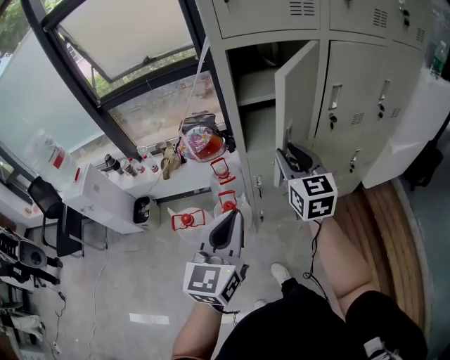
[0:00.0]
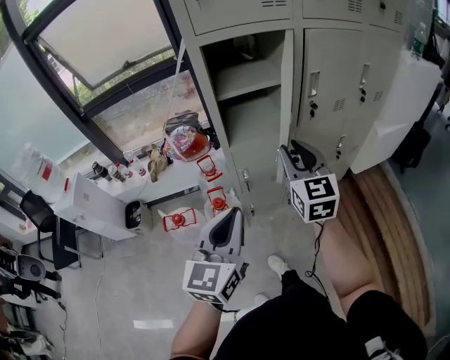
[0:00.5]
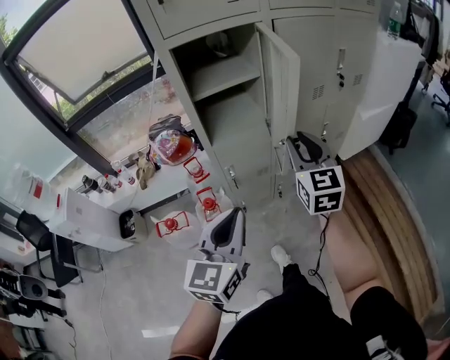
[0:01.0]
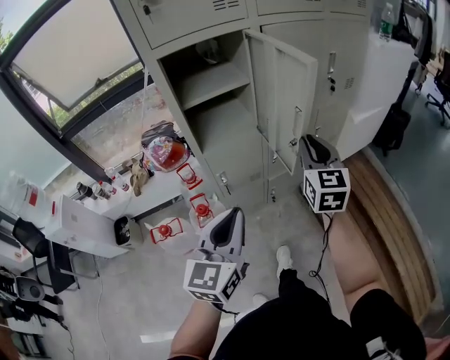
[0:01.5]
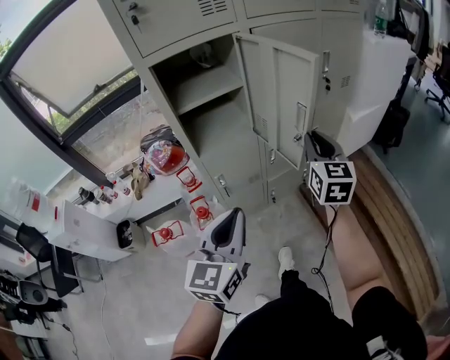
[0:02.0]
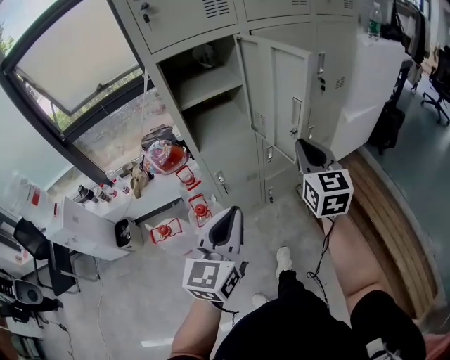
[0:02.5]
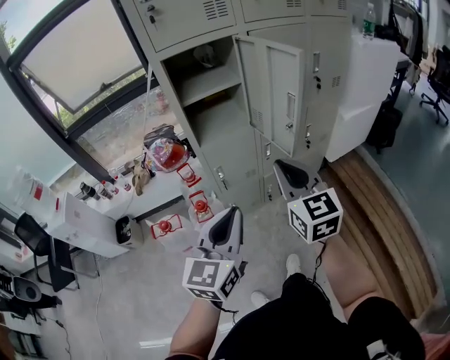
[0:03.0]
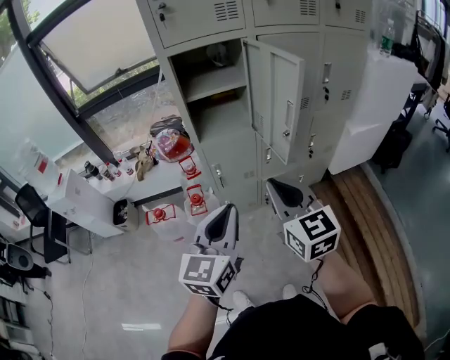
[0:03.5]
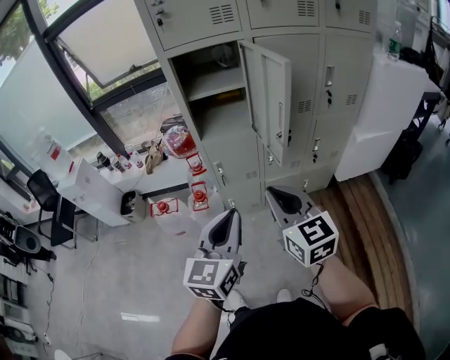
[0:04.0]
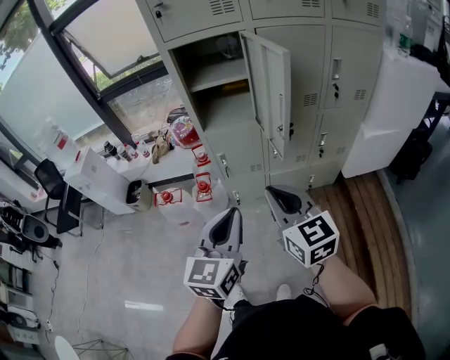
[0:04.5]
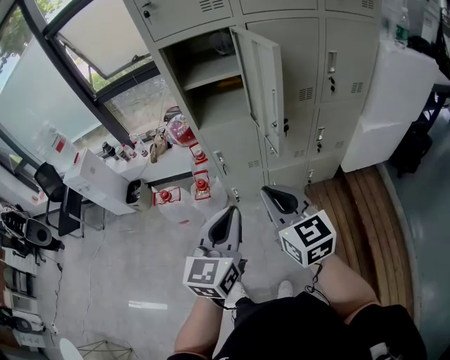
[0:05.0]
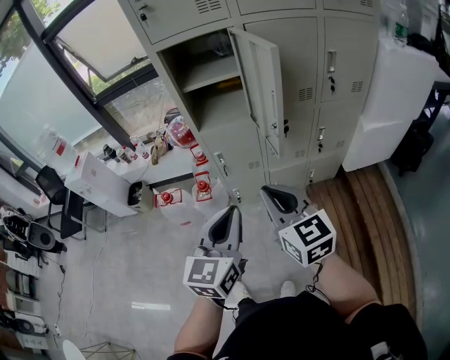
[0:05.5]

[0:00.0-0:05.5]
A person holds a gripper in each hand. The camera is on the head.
0:00.0 to 0:02.0: The right gripper is displaced to the right by about 25 cm, and rotates approximately 30 degrees, while the left gripper heads to the right, covering roughly 10 cm.
0:02.0 to 0:03.5: The left gripper moves backward, roughly 5 cm. The right gripper goes some 20 cm backward and to the left, and turns by roughly 30 degrees.
0:03.5 to 0:05.5: The grippers both shift to the right by roughly 5 cm.

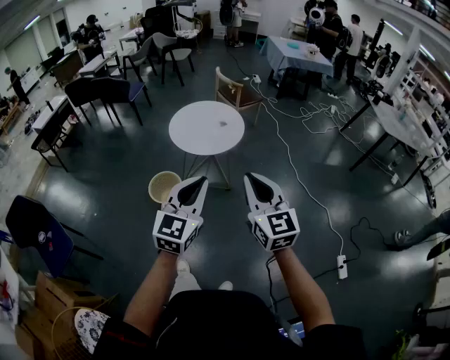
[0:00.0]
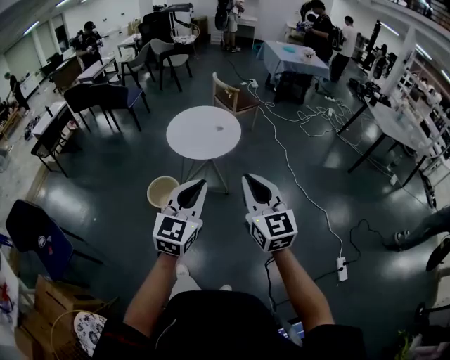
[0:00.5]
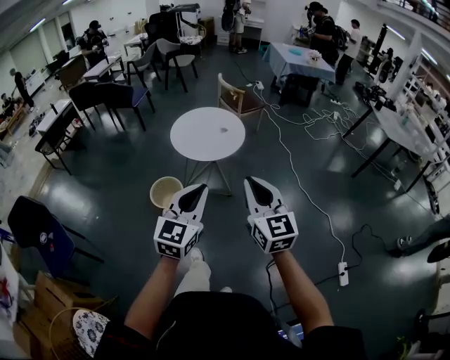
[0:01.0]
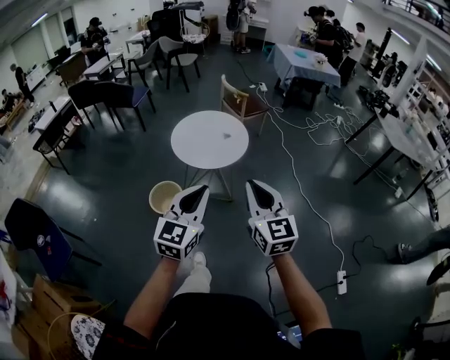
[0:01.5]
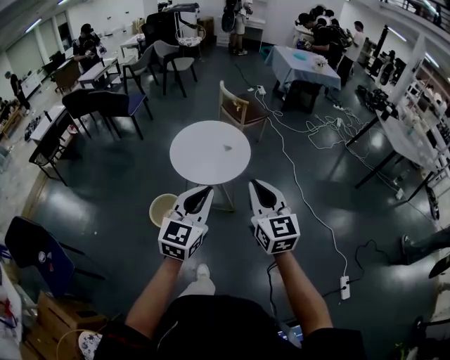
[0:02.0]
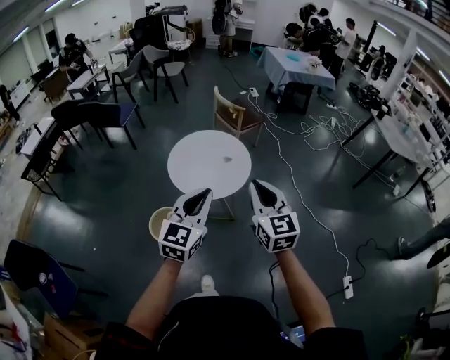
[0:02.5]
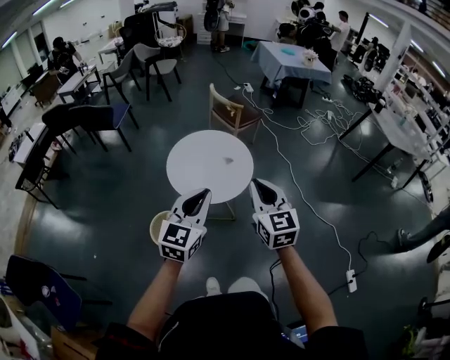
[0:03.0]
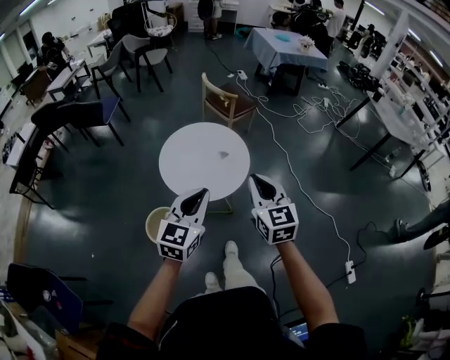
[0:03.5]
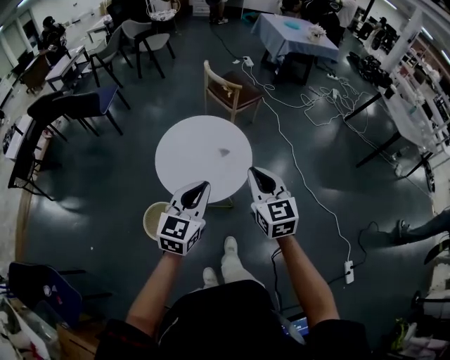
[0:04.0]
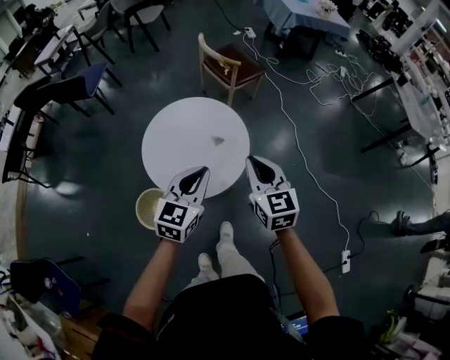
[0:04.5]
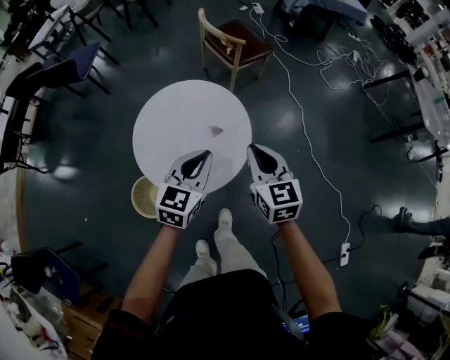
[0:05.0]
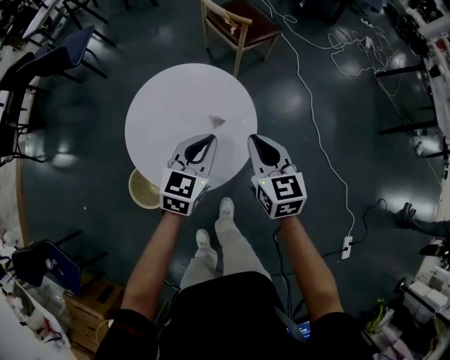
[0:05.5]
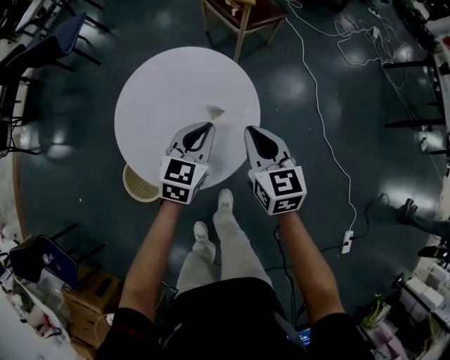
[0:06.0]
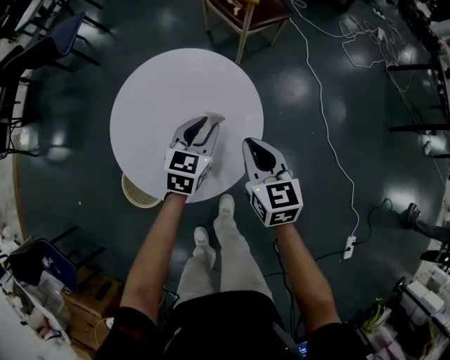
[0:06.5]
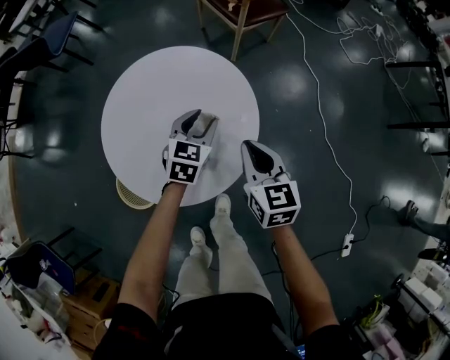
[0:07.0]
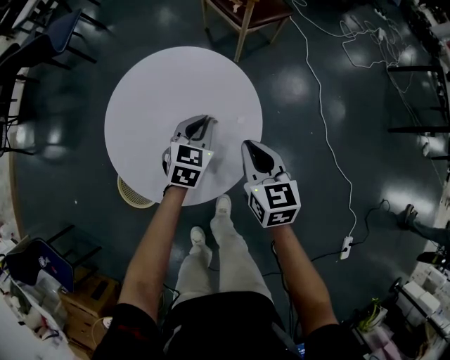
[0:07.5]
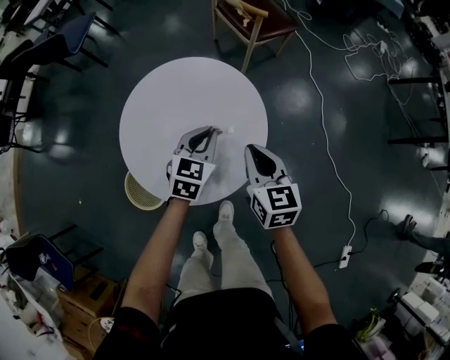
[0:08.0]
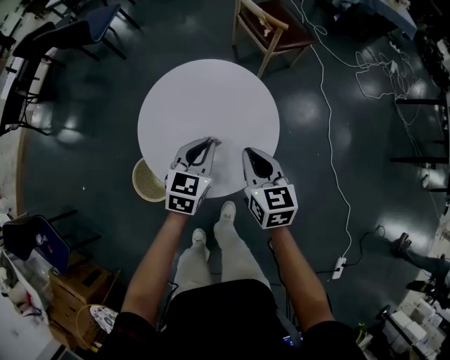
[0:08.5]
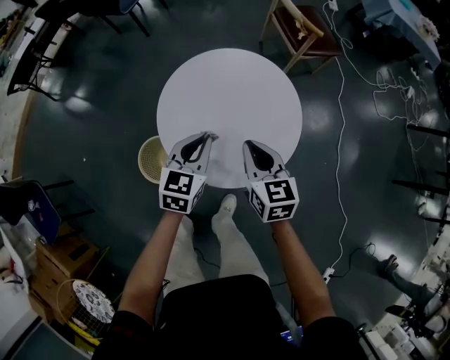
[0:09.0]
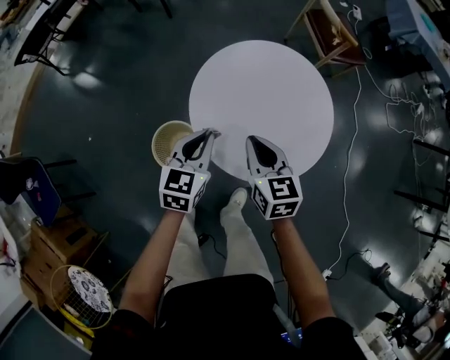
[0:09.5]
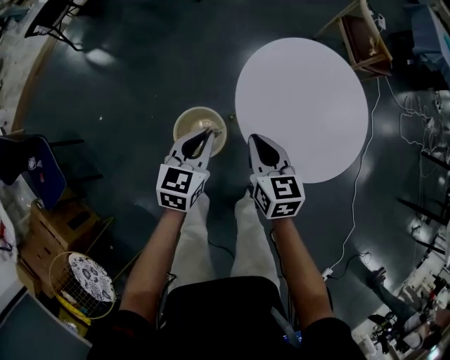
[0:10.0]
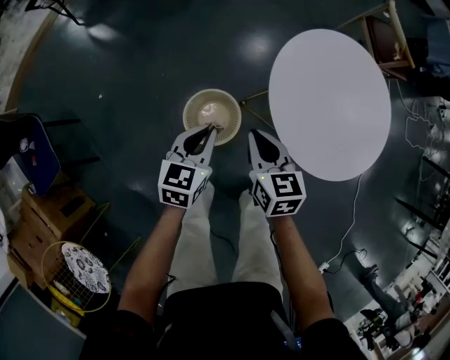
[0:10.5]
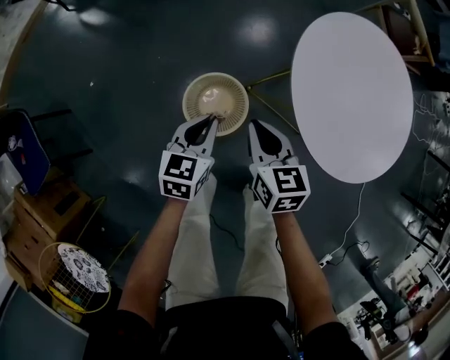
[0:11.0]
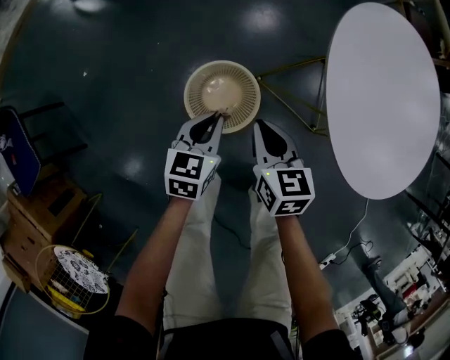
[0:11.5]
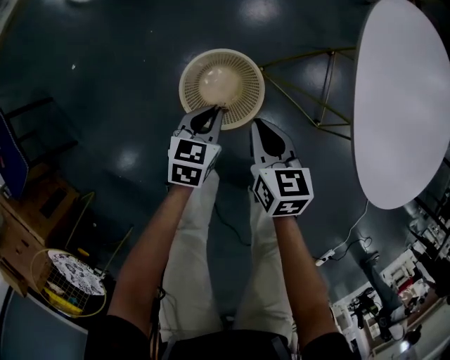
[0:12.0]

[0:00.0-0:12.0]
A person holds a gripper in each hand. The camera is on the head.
0:00.0 to 0:02.0: The grippers both shift forward by roughly 20 cm.
0:02.0 to 0:04.0: Both grippers move forward, about 30 cm.
0:04.0 to 0:06.0: The left gripper is displaced forward and downward by approximately 40 cm; the right gripper travels downward and forward by roughly 35 cm.
0:06.0 to 0:08.0: The left gripper is displaced downward by approximately 5 cm, and opens, then closes again.
0:08.0 to 0:10.0: Both grippers are carried to the left, some 40 cm. The right gripper changes its angle by about 20 degrees, while the left gripper changes its angle by about 30 degrees.
0:10.0 to 0:12.0: The right gripper travels downward and to the left by approximately 40 cm, while the left gripper moves downward, approximately 40 cm.

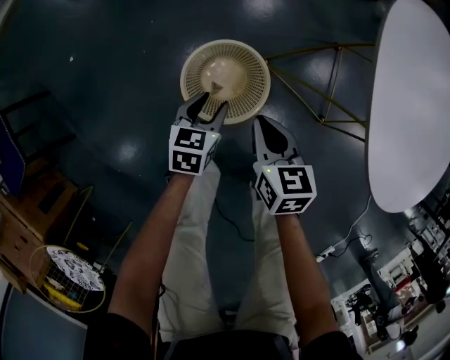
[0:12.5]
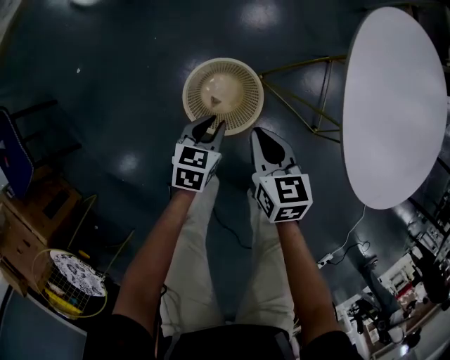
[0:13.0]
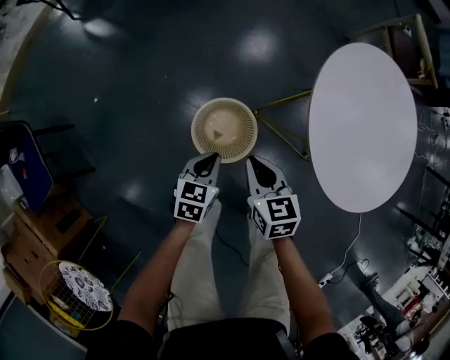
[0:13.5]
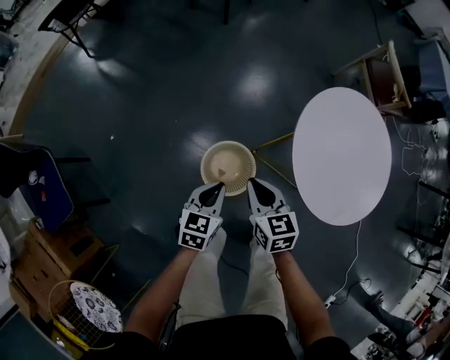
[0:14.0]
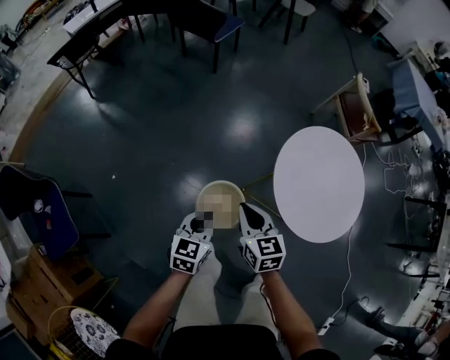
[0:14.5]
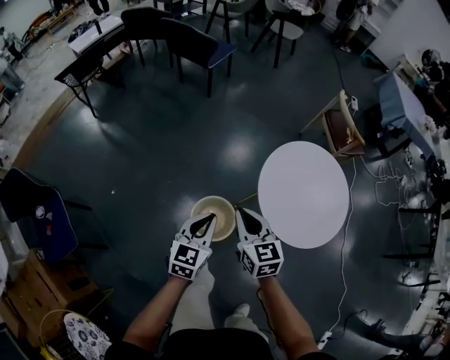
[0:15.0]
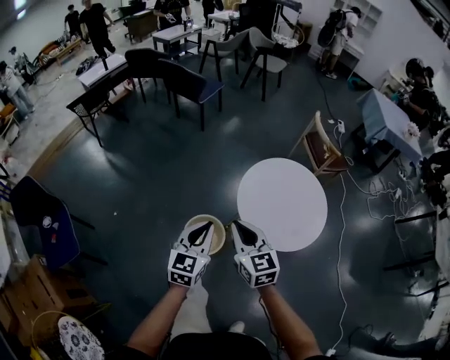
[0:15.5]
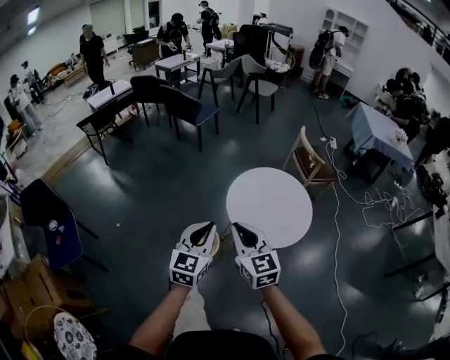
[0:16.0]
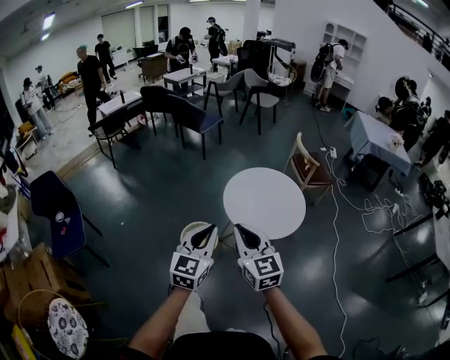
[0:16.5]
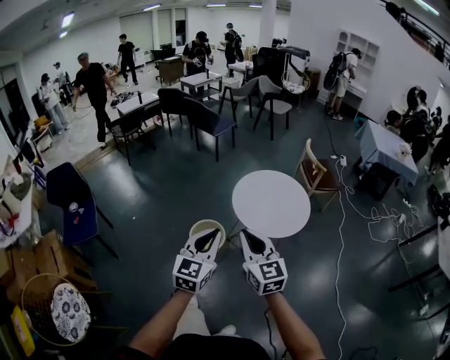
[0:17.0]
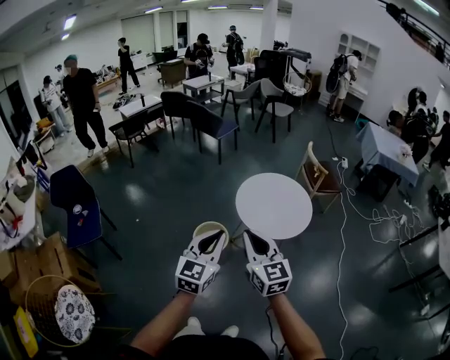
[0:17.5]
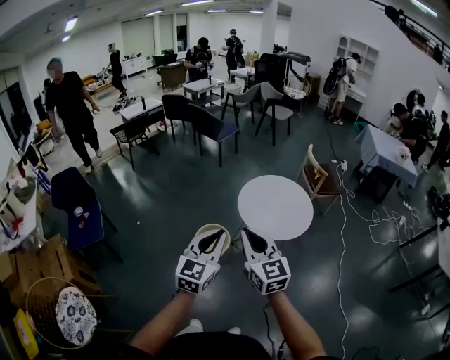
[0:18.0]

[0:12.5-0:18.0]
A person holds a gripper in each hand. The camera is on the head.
0:12.5 to 0:14.5: The grippers both shift upward by about 40 cm. The left gripper closes.
0:14.5 to 0:16.0: Both grippers travel together upward, backward and to the right, roughly 40 cm. The right gripper changes its angle by about 30 degrees, while the left gripper rotates approximately 30 degrees.
0:16.0 to 0:18.0: The two grippers go some 25 cm backward and upward.

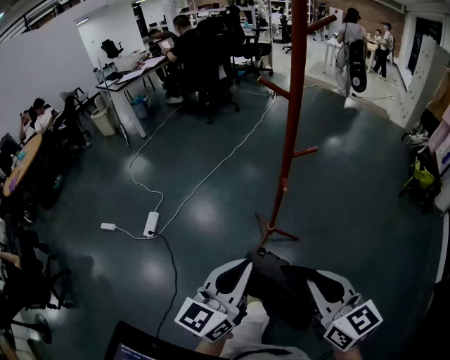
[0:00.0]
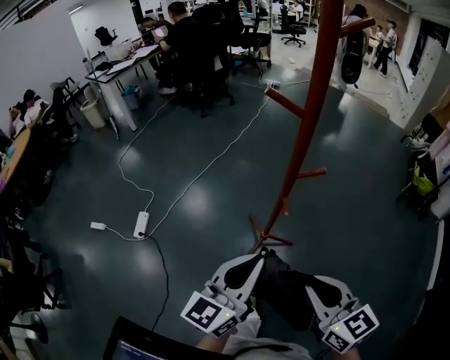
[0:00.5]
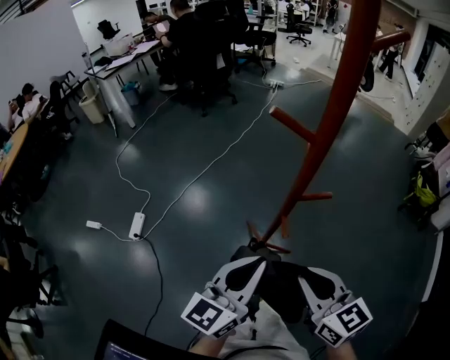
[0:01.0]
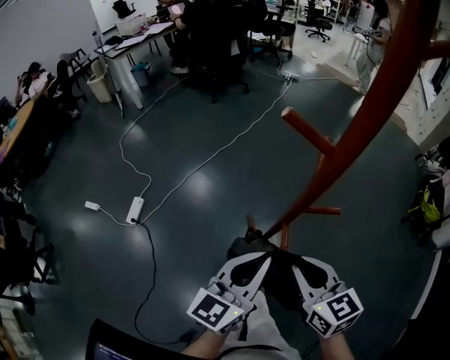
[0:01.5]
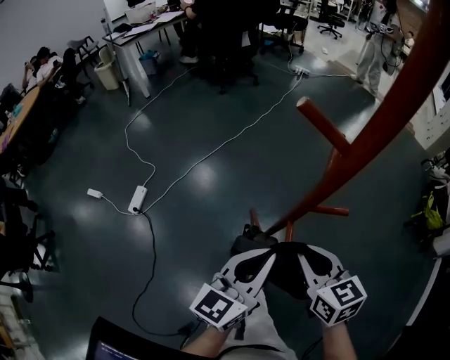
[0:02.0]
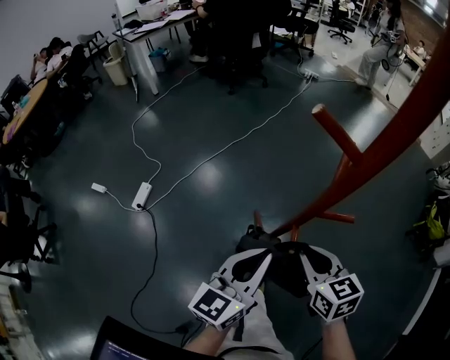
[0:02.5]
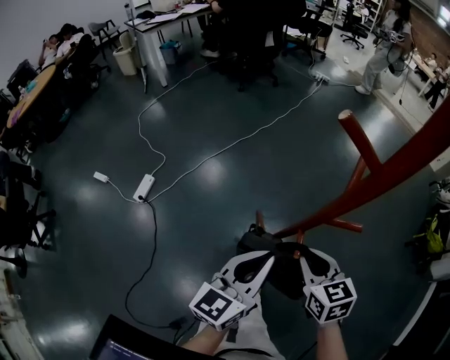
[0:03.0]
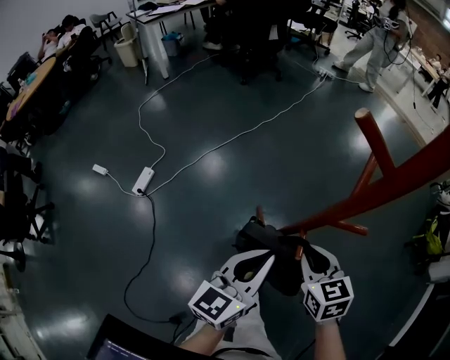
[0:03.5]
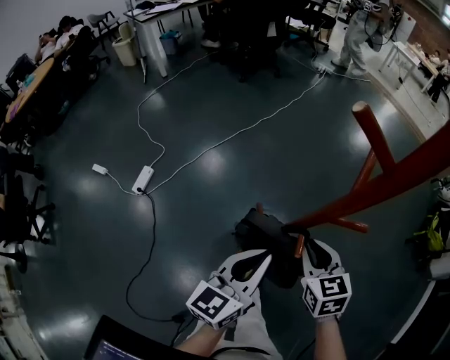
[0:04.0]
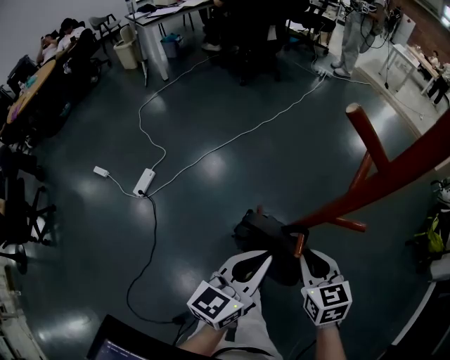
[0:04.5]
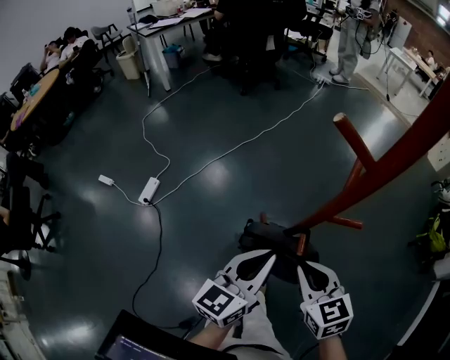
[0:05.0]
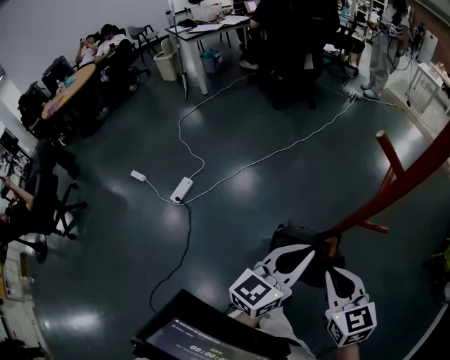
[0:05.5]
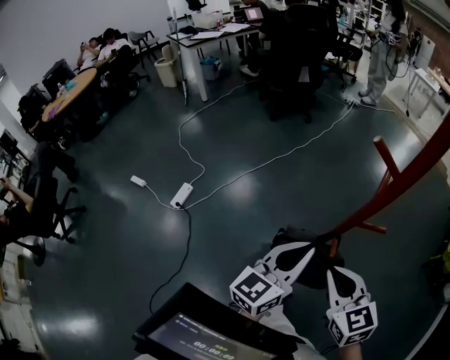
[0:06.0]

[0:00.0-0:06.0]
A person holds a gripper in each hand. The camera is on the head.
0:00.0 to 0:02.0: The grippers both shift forward by roughly 25 cm.
0:02.0 to 0:04.0: The right gripper shifts roughly 5 cm downward. Meanwhile the left gripper changes place by approximately 5 cm.
0:04.0 to 0:06.0: The left gripper shifts some 10 cm upward. The right gripper goes some 15 cm upward, backward and to the left.
